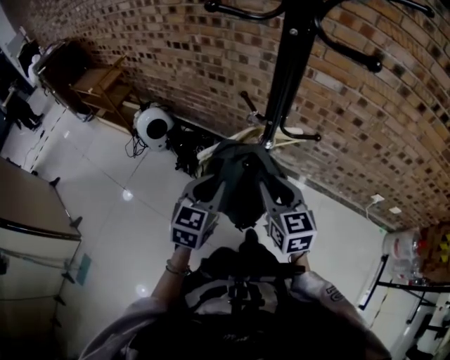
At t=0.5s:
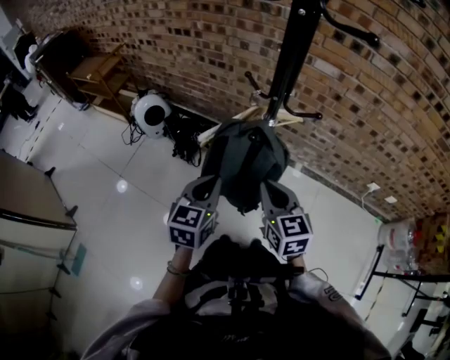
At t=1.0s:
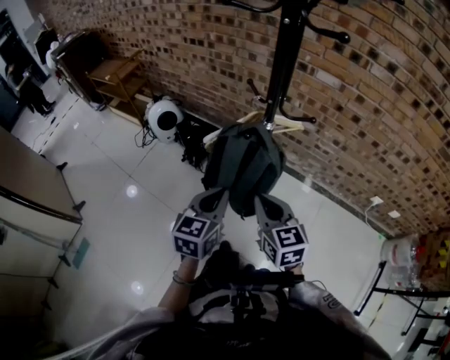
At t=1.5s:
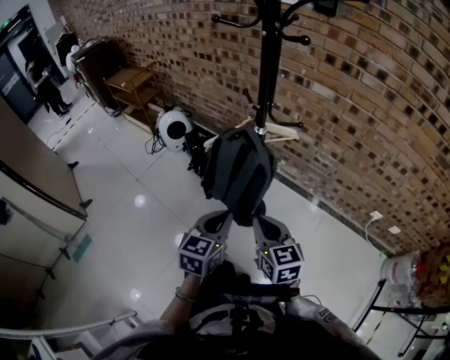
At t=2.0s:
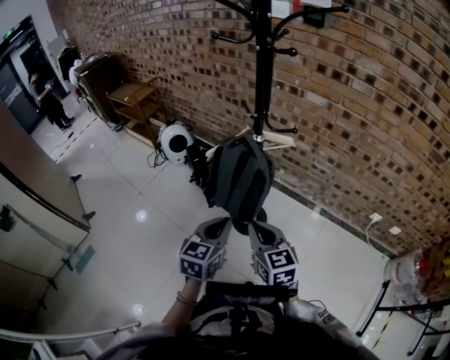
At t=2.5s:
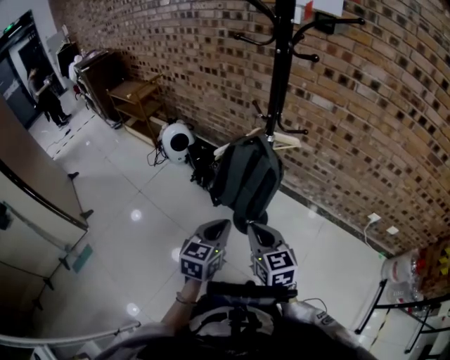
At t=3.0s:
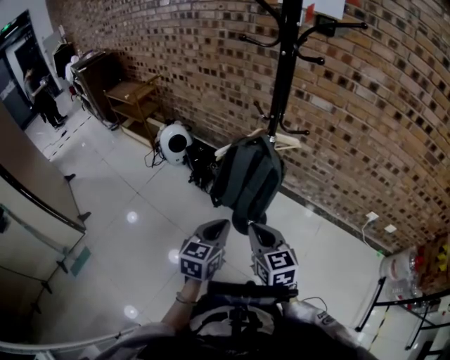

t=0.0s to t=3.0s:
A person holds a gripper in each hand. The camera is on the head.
t=0.0s to t=1.5s: The right gripper goes approximately 20 cm backward, and closes, while the left gripper shifts approximately 20 cm backward and to the right.
t=1.5s to t=3.0s: The two grippers go roughly 10 cm to the left.

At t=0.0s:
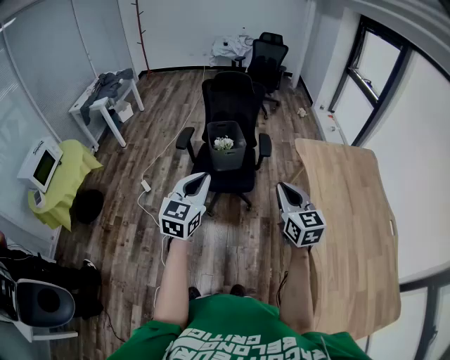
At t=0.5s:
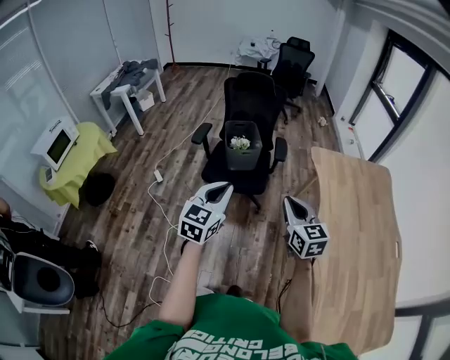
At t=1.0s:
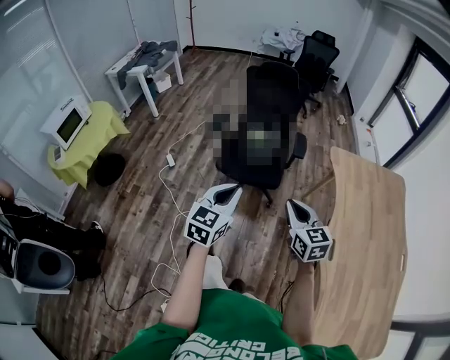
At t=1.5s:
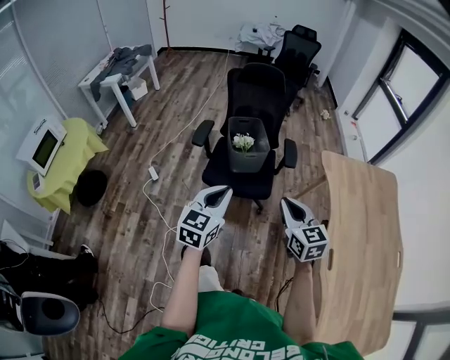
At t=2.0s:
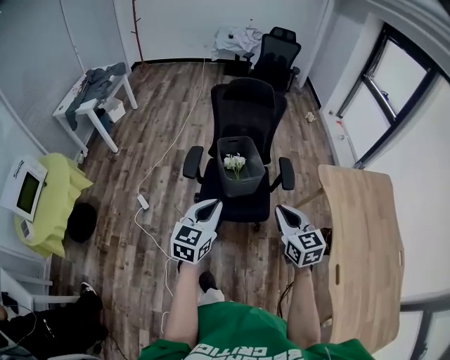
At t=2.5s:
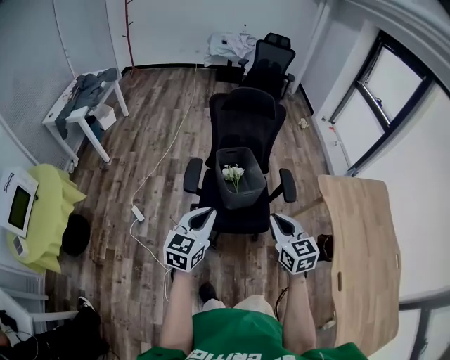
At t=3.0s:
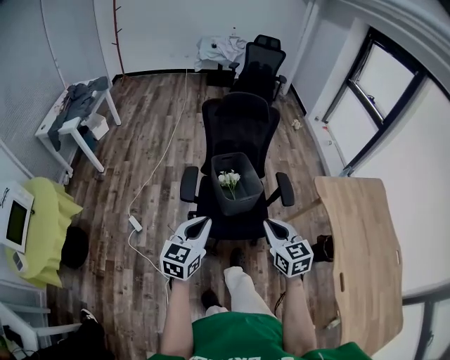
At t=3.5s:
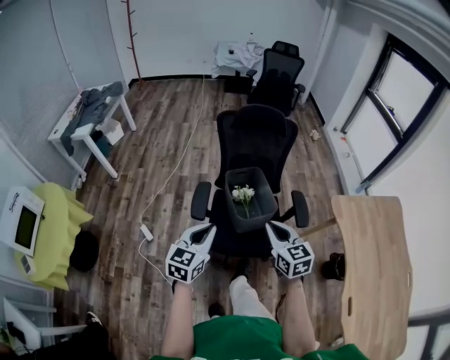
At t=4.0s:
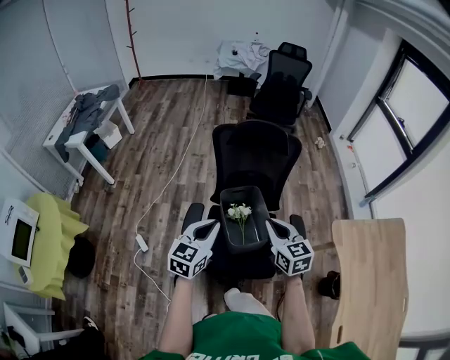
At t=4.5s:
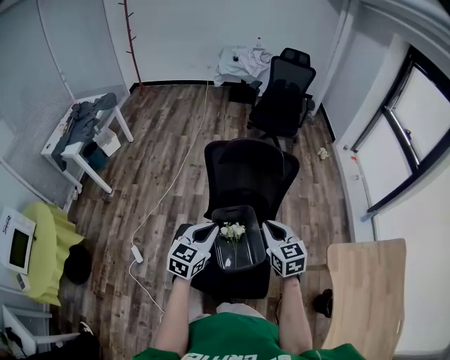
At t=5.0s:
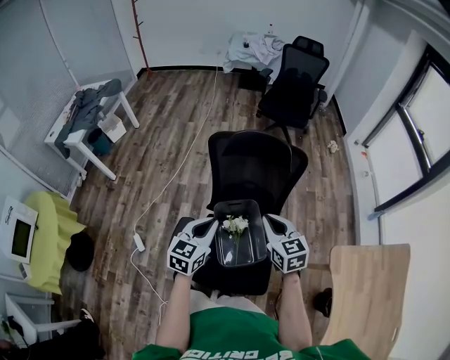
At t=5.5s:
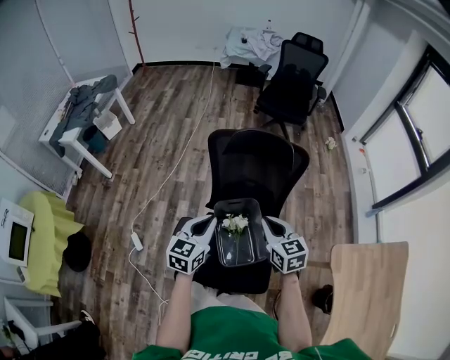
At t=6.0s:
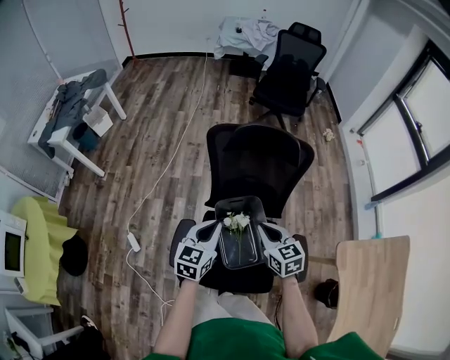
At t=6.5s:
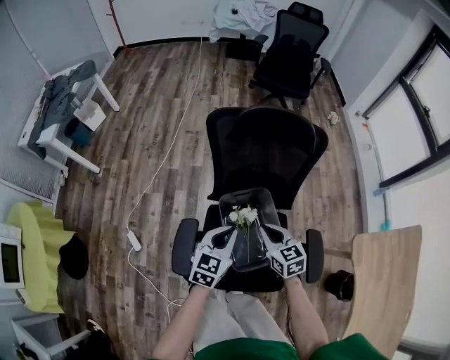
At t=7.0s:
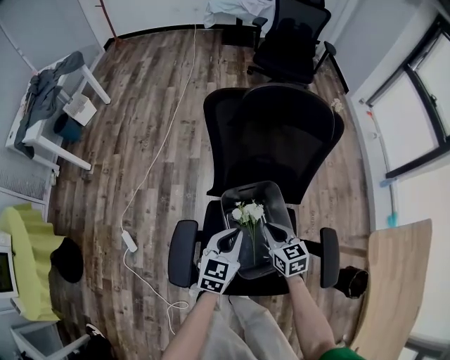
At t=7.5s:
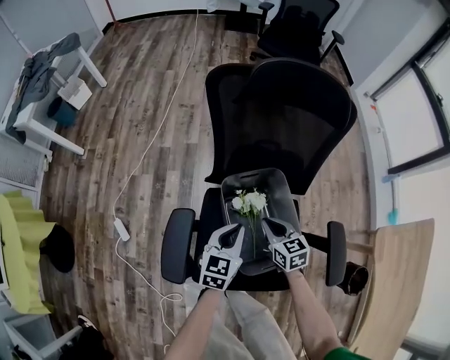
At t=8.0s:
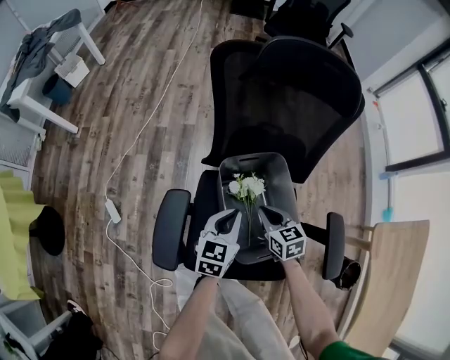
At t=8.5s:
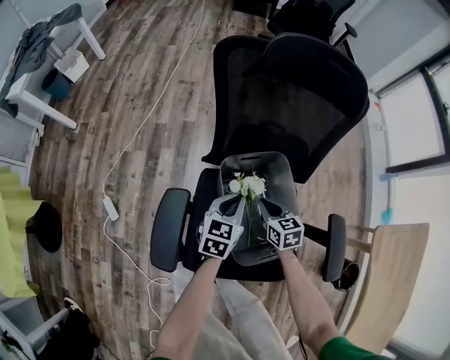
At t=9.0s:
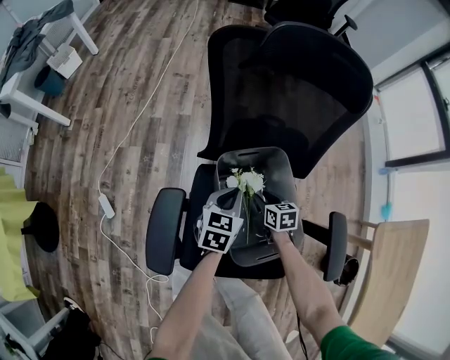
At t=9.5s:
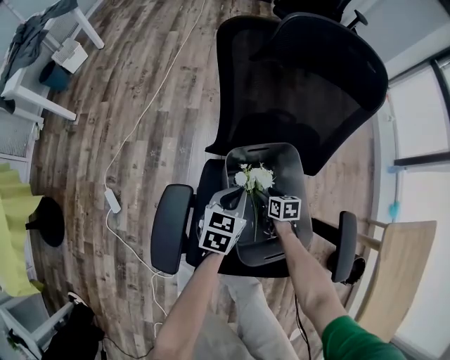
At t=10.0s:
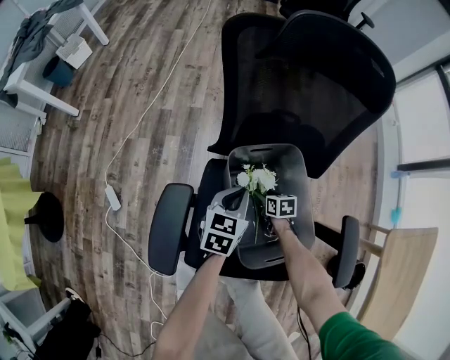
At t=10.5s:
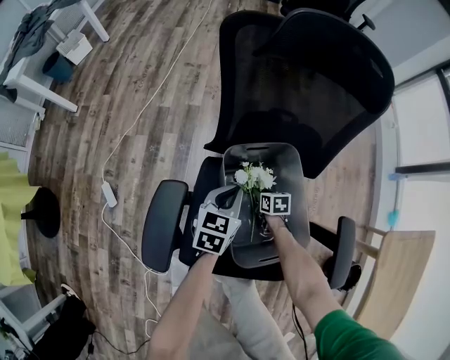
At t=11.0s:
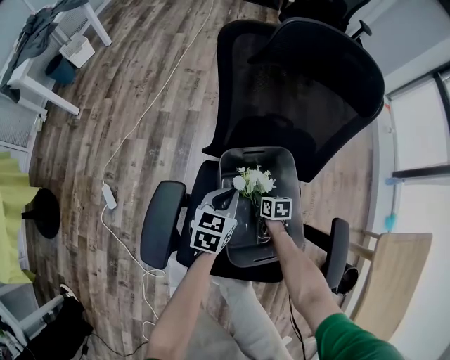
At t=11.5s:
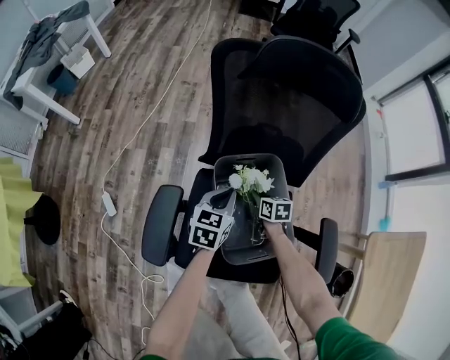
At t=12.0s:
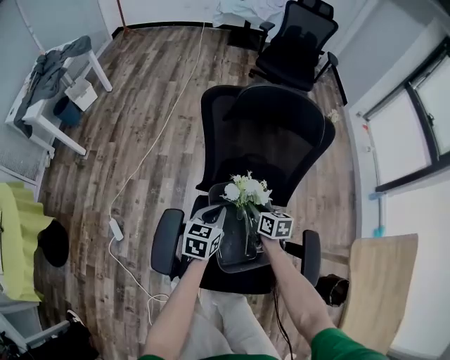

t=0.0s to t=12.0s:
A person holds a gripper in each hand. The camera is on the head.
t=0.0s to t=2.0s: The right gripper shifts about 25 cm forward and to the left. Meanwhile the left gripper moves forward, to the left and downward, some 25 cm.
t=2.0s to t=4.0s: The two grippers go some 30 cm forward.
t=4.0s to t=6.0s: The grippers both shift forward and downward by some 20 cm.
t=6.0s to t=8.0s: The grippers both shift downward by about 30 cm.
t=8.0s to t=10.0s: The right gripper shifts approximately 20 cm downward, changes its angle by some 30 degrees, and opens up. Meanwhile the left gripper is displaced downward and forward by about 10 cm.
t=10.0s to t=12.0s: The left gripper shifts about 10 cm upward. The right gripper moves upward, about 25 cm, turns by some 20 degrees, and closes.

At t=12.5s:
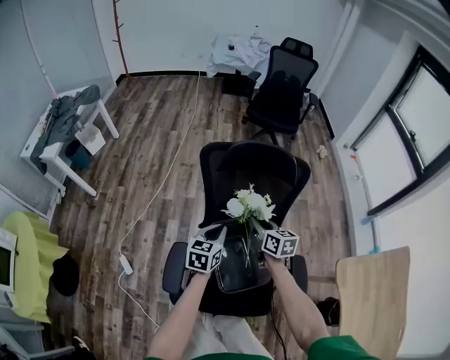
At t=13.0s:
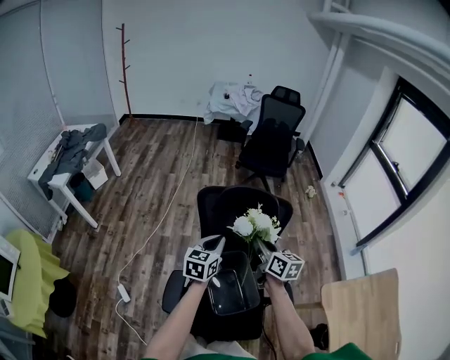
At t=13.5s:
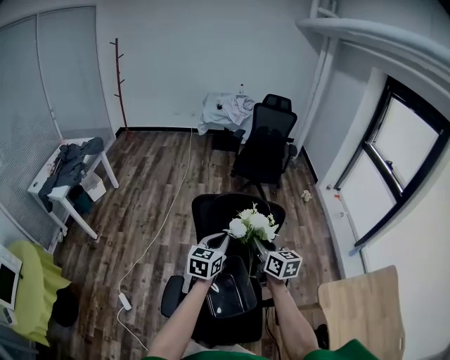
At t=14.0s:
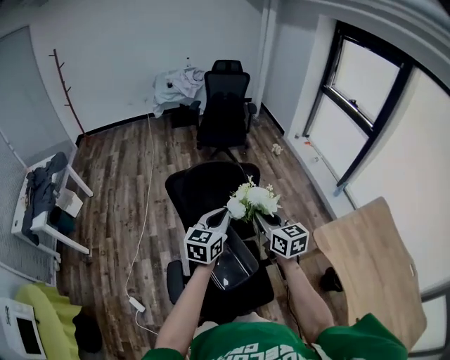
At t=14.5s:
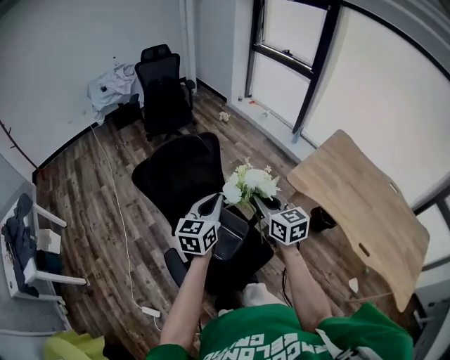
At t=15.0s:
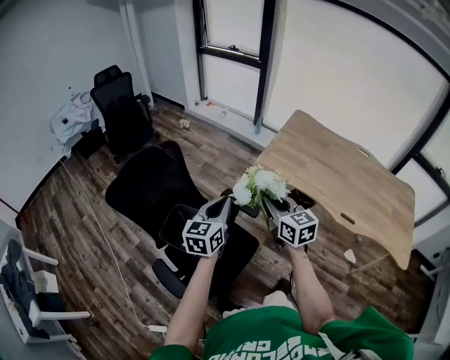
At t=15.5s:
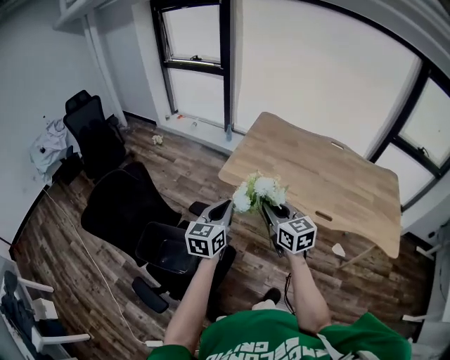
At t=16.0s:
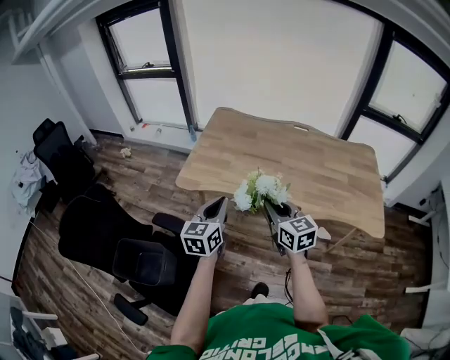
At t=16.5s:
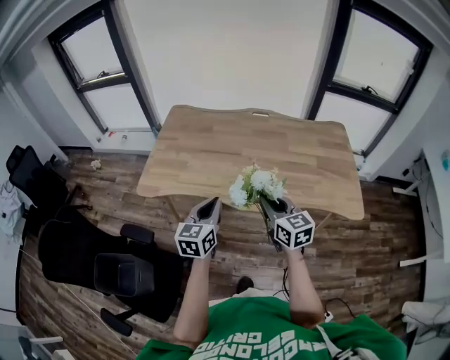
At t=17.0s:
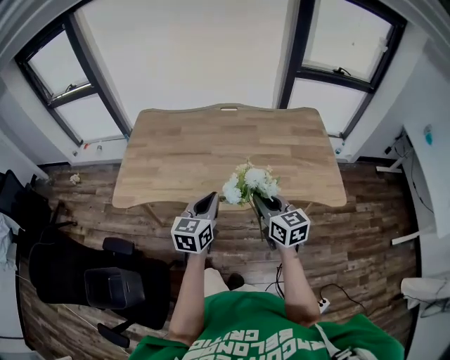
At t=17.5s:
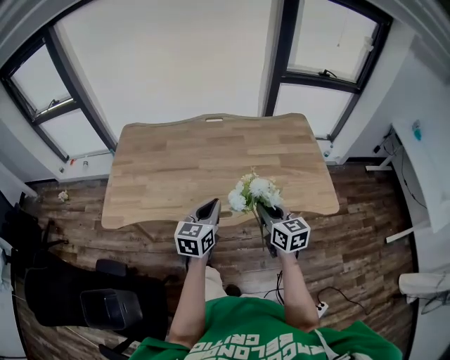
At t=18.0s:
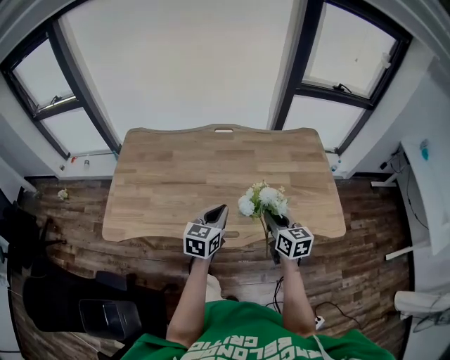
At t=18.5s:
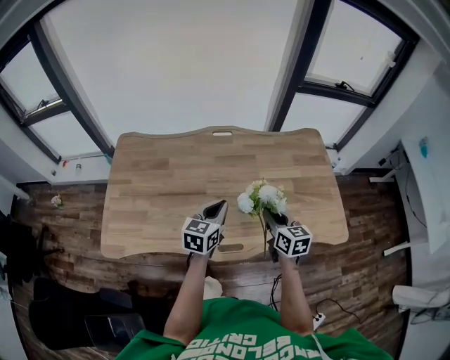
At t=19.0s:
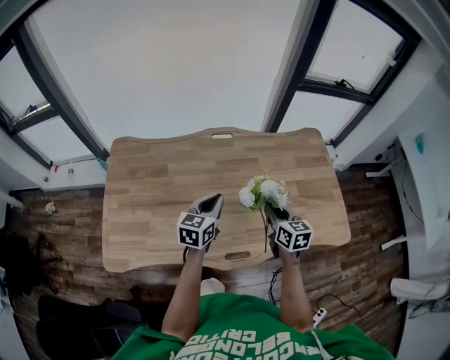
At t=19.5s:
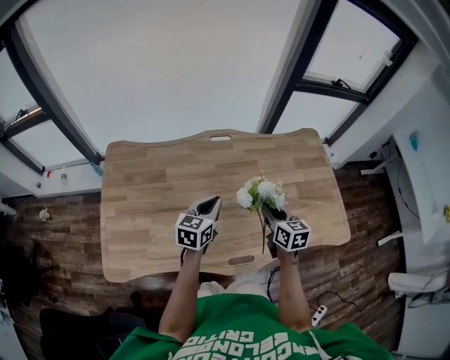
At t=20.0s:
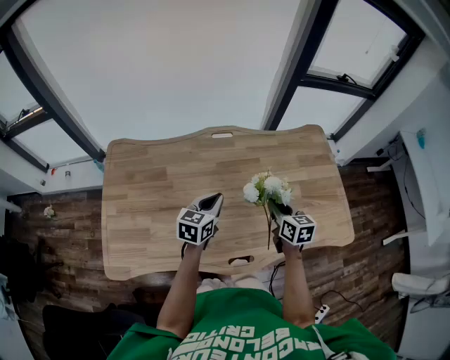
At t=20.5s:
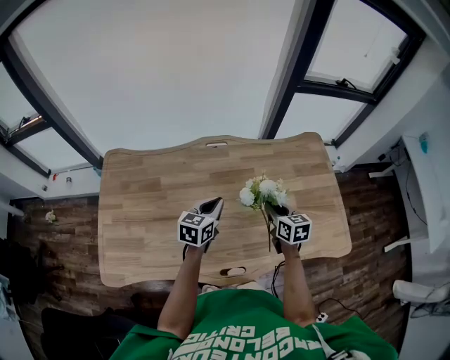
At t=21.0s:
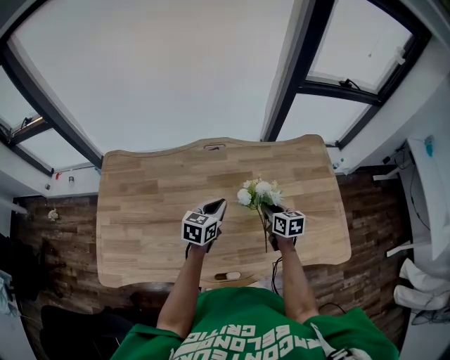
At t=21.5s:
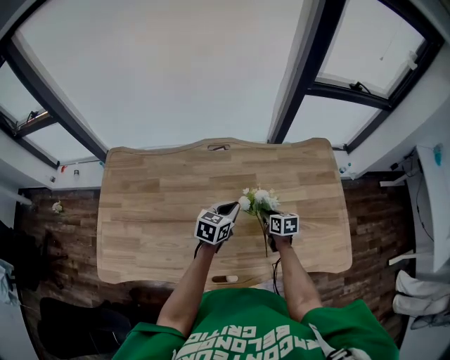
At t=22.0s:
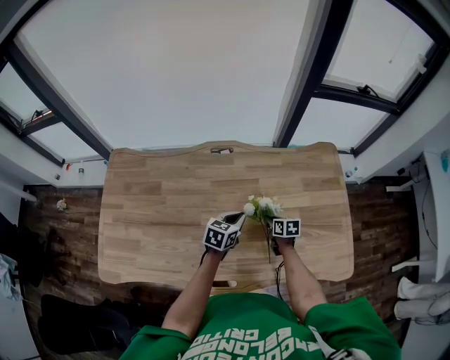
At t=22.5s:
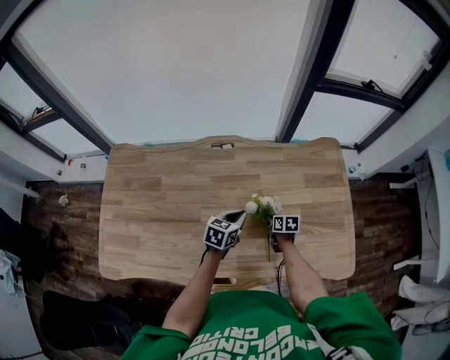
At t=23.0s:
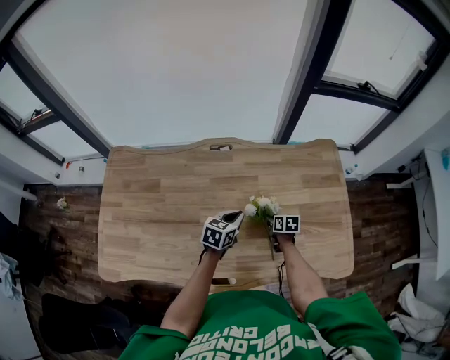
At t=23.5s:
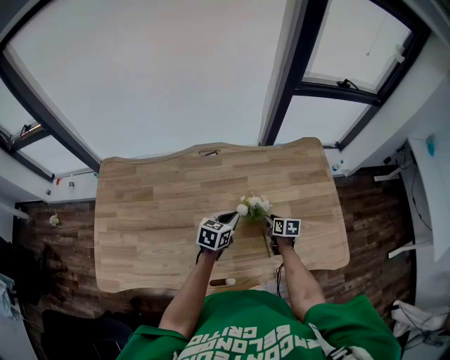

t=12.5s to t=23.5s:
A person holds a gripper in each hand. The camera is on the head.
t=12.5s to t=14.5s: The left gripper heads upward, covering some 20 cm, and rotates some 40 degrees. Meanwhile the right gripper moves some 30 cm, and turns by about 40 degrees.
t=14.5s to t=16.0s: The pair of grippers is taken some 50 cm. The left gripper changes its angle by roughly 30 degrees, while the right gripper swivels roughly 40 degrees.
t=16.0s to t=18.0s: Both grippers travel together to the right and forward, approximately 35 cm. The left gripper turns by roughly 30 degrees, while the right gripper swivels approximately 30 degrees.
t=18.0s to t=20.0s: The left gripper heads forward and to the left, covering some 25 cm; the right gripper is displaced forward by about 20 cm.
t=20.0s to t=21.5s: The left gripper is displaced to the right, forward and downward by about 15 cm; the right gripper shifts roughly 20 cm downward and forward.
t=21.5s to t=23.5s: The right gripper moves to the right, about 5 cm.
